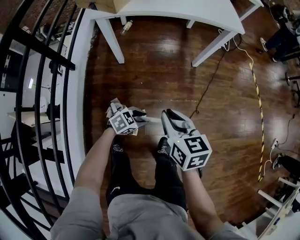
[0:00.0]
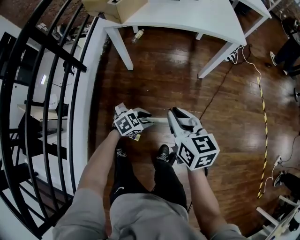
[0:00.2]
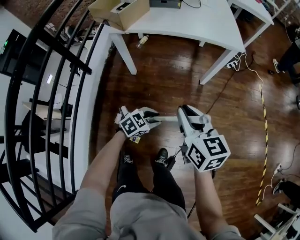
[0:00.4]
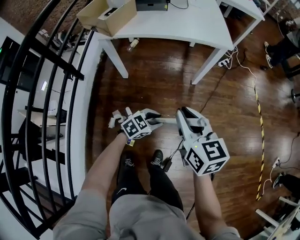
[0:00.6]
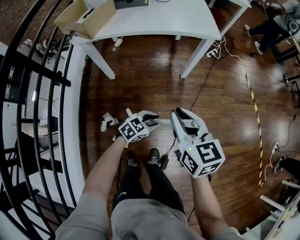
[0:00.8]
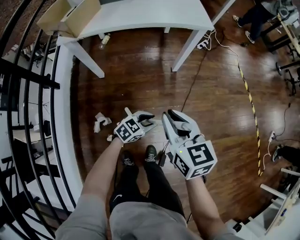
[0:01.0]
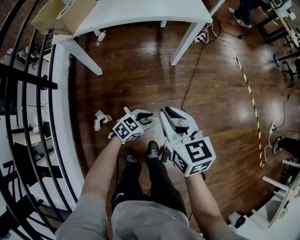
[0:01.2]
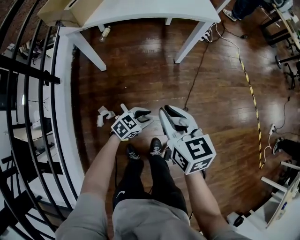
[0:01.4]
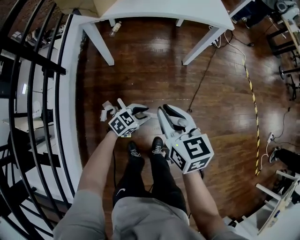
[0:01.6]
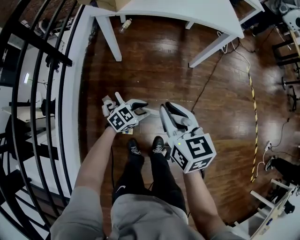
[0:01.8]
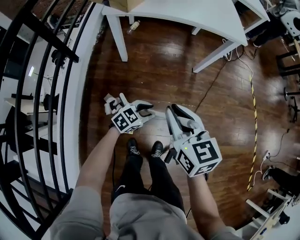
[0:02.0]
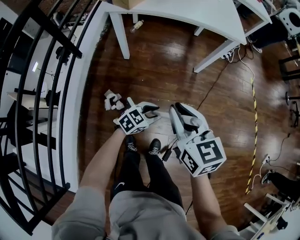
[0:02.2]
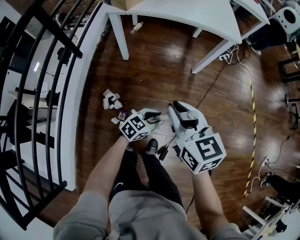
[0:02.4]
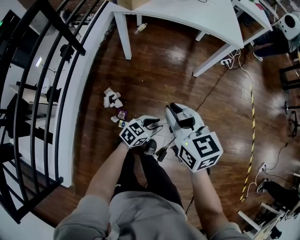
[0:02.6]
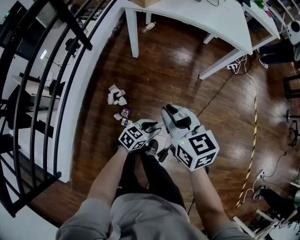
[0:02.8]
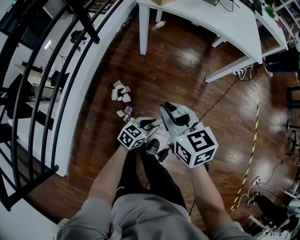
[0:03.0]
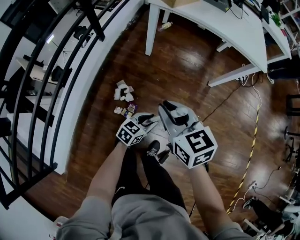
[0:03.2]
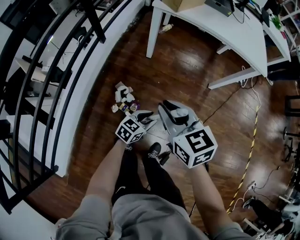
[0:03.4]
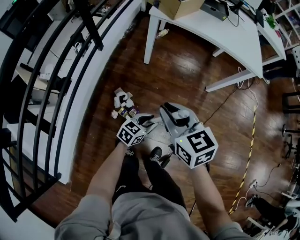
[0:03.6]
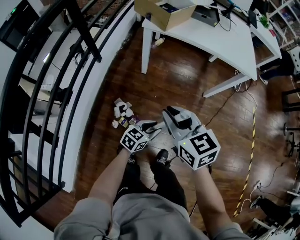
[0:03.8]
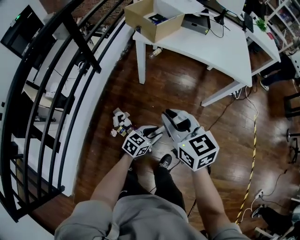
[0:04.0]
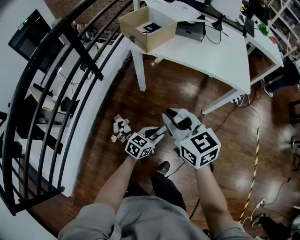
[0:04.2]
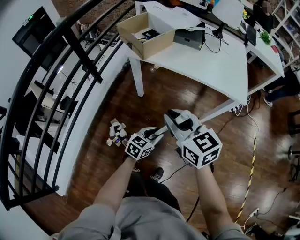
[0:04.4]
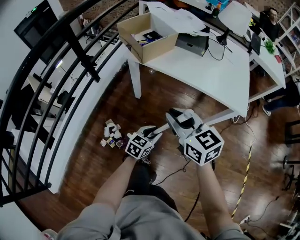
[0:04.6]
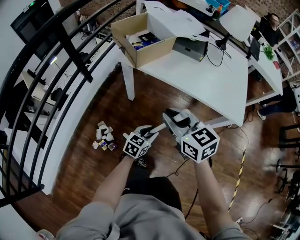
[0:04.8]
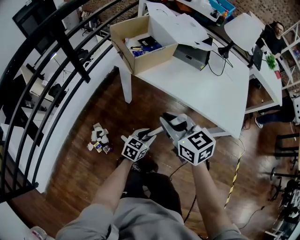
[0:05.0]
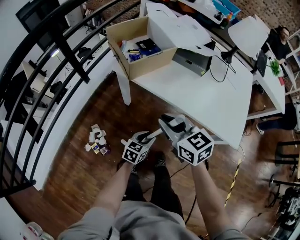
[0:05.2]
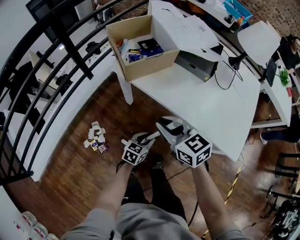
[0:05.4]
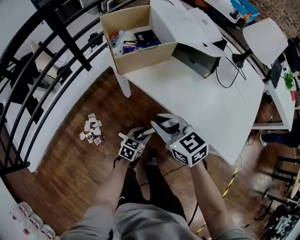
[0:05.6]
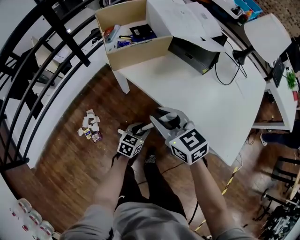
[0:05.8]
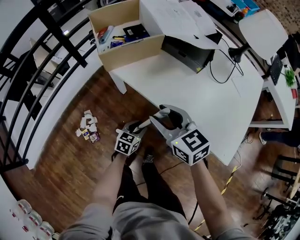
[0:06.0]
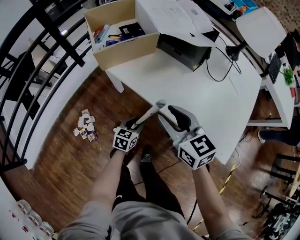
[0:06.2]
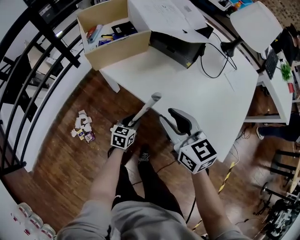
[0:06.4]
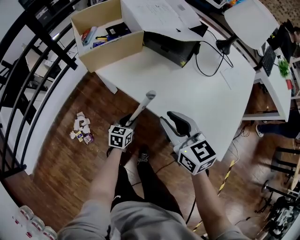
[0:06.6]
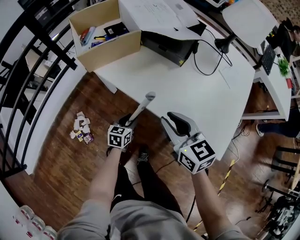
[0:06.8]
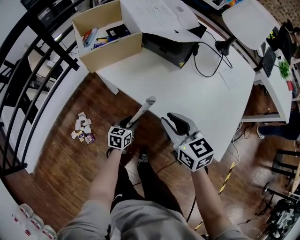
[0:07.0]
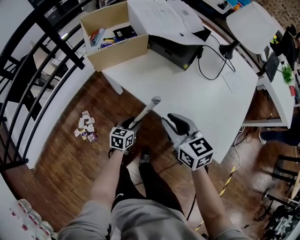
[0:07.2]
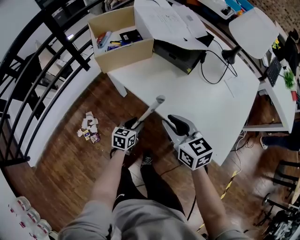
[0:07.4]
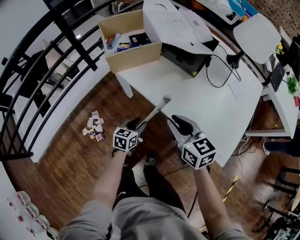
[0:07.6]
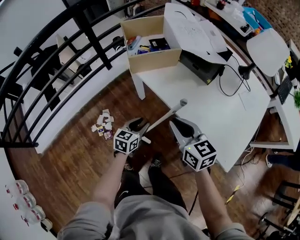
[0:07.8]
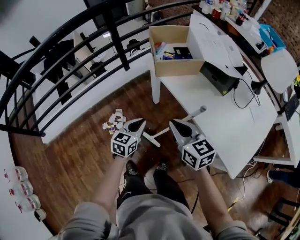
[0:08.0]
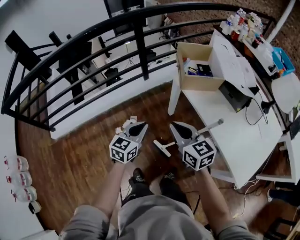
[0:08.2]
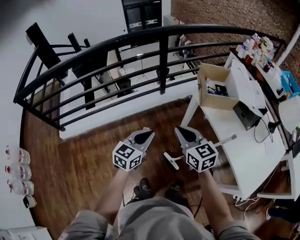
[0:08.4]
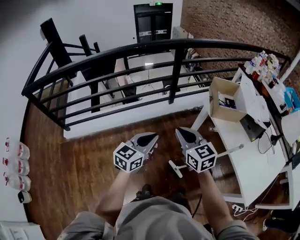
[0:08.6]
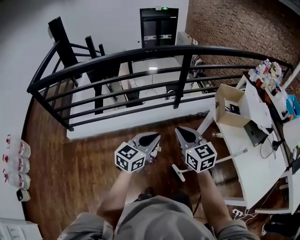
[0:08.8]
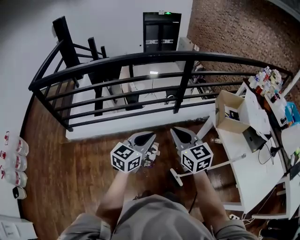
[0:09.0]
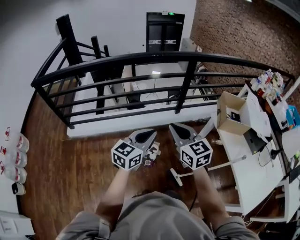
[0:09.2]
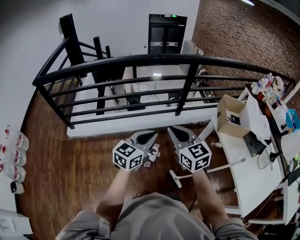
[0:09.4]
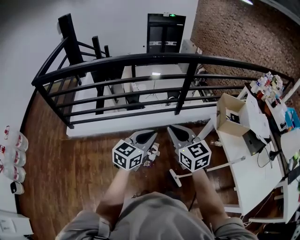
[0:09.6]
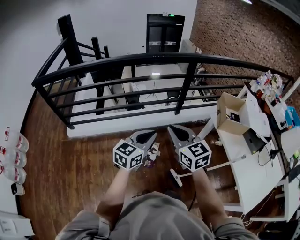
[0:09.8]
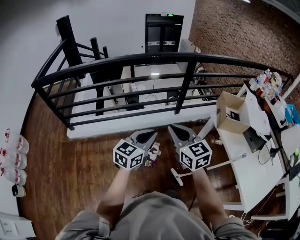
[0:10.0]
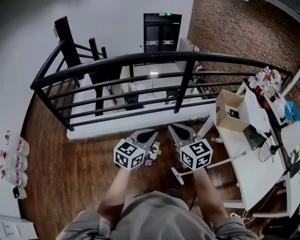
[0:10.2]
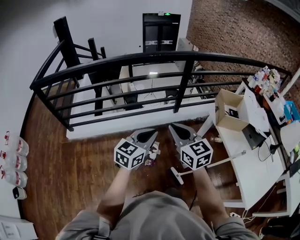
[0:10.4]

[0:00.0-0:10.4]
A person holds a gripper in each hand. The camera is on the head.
0.0 to 1.4 s: The left gripper shifts roughly 10 cm to the right and forward. The right gripper travels to the right and forward by about 10 cm, and reaches roughly 10 cm upward, then returns.
1.4 to 3.0 s: The left gripper moves roughly 15 cm, and rotates about 40 degrees; the right gripper moves roughly 15 cm, and turns by about 30 degrees.
3.0 to 4.4 s: The right gripper travels forward, upward and to the right by roughly 25 cm. Meanwhile the left gripper moves forward and upward, approximately 25 cm.
4.4 to 6.0 s: The left gripper heads forward, downward and to the right, covering approximately 30 cm, and rotates approximately 30 degrees. Meanwhile the right gripper goes approximately 30 cm forward, to the right and downward, swivels approximately 20 degrees, and opens.
6.0 to 7.4 s: The right gripper heads to the right, covering approximately 10 cm.
7.4 to 9.0 s: Both grippers are carried about 50 cm. The left gripper turns by about 40 degrees, and closes, while the right gripper swivels roughly 40 degrees, and closes its fingers.
9.0 to 10.4 s: The grippers stay close to where they were, moving slightly.

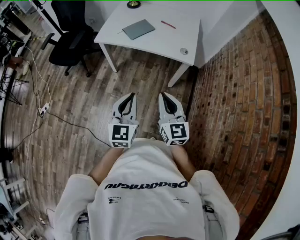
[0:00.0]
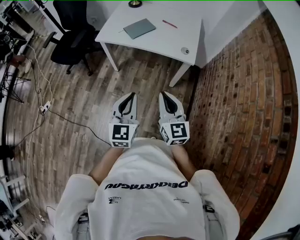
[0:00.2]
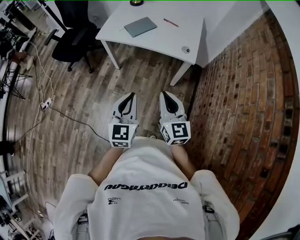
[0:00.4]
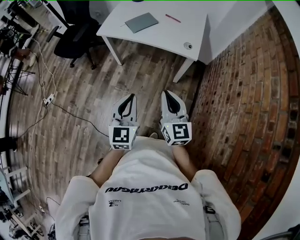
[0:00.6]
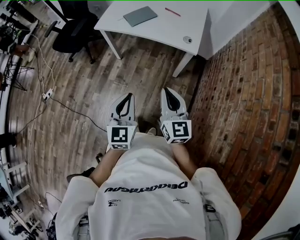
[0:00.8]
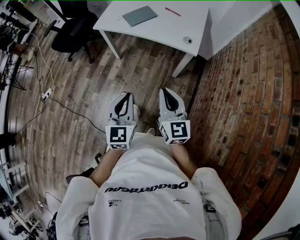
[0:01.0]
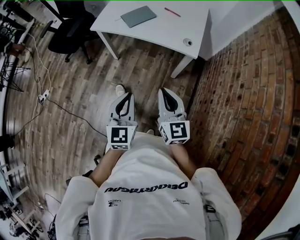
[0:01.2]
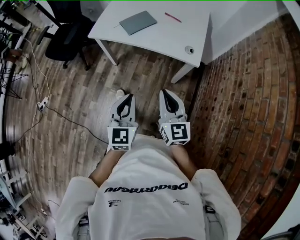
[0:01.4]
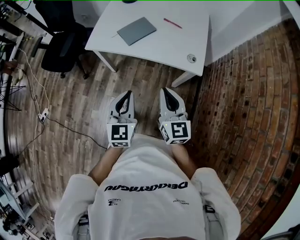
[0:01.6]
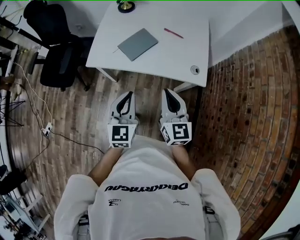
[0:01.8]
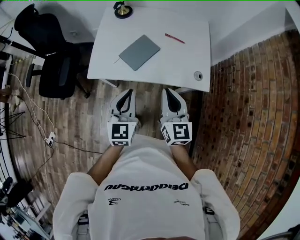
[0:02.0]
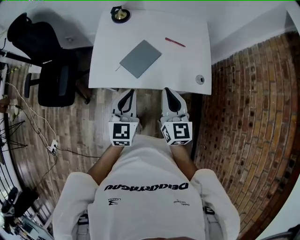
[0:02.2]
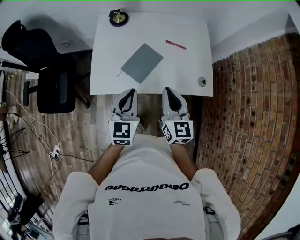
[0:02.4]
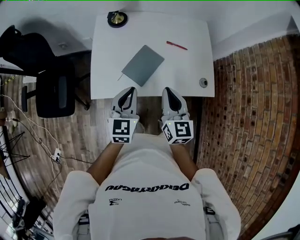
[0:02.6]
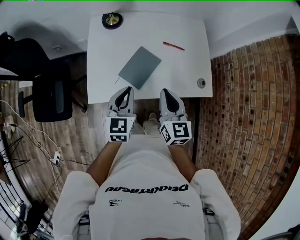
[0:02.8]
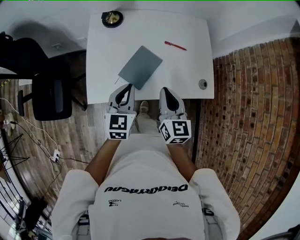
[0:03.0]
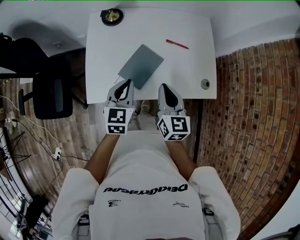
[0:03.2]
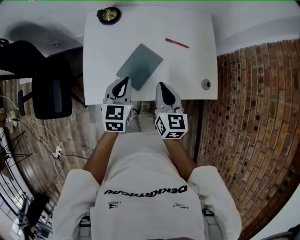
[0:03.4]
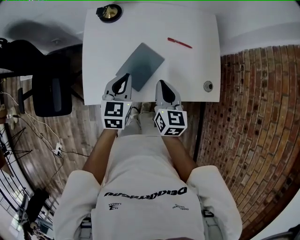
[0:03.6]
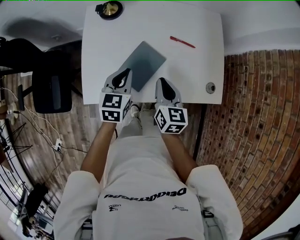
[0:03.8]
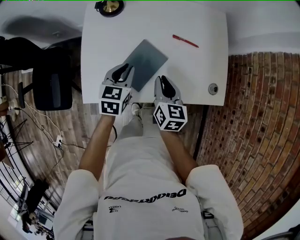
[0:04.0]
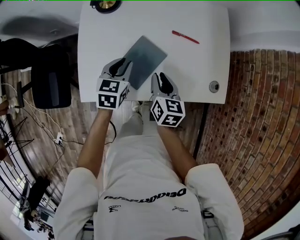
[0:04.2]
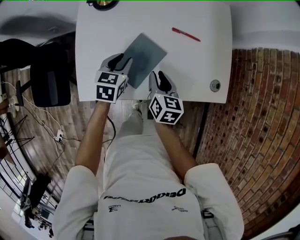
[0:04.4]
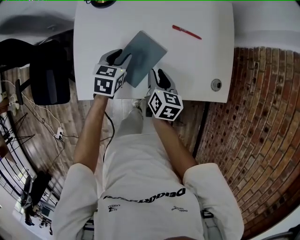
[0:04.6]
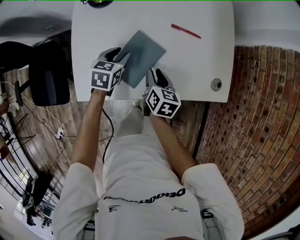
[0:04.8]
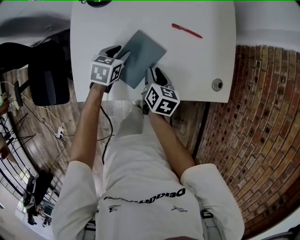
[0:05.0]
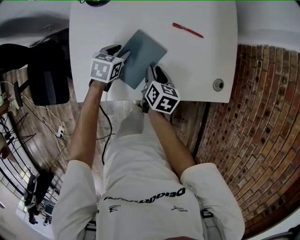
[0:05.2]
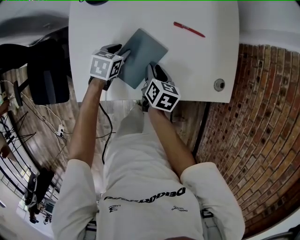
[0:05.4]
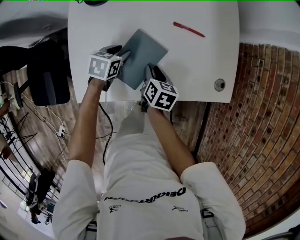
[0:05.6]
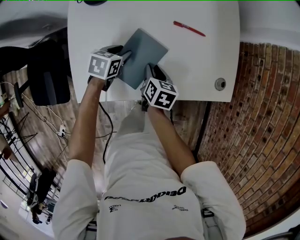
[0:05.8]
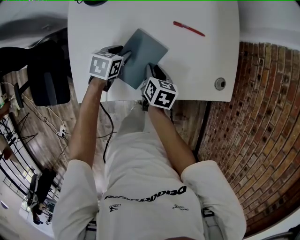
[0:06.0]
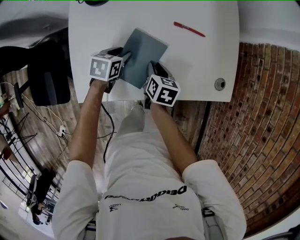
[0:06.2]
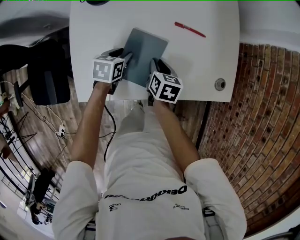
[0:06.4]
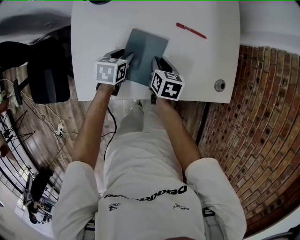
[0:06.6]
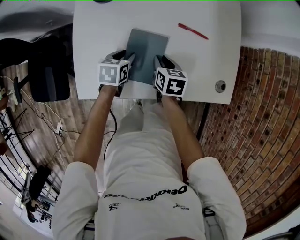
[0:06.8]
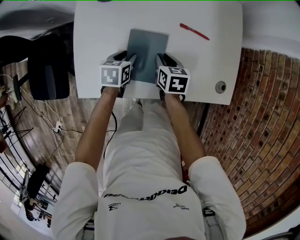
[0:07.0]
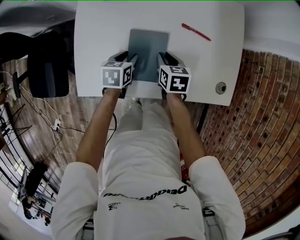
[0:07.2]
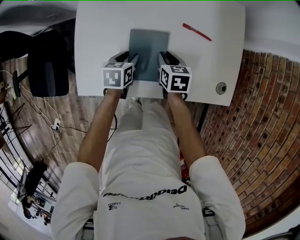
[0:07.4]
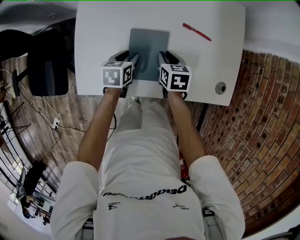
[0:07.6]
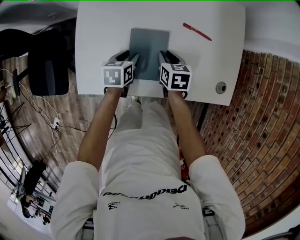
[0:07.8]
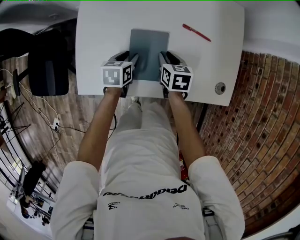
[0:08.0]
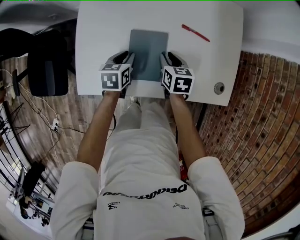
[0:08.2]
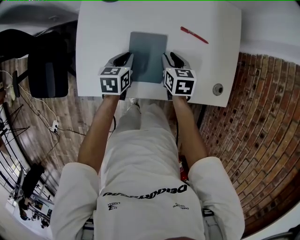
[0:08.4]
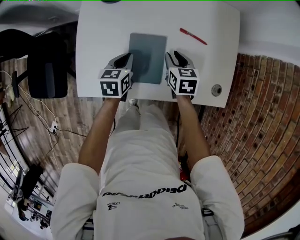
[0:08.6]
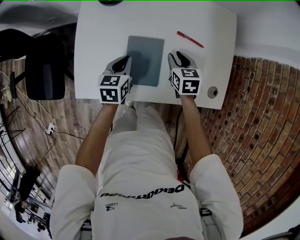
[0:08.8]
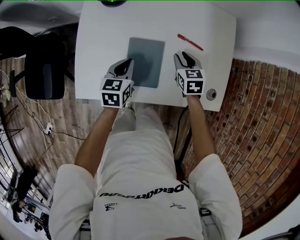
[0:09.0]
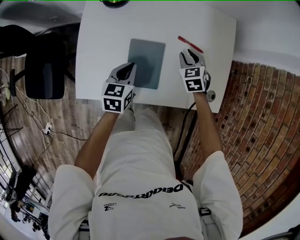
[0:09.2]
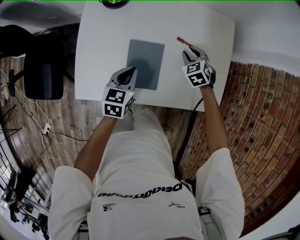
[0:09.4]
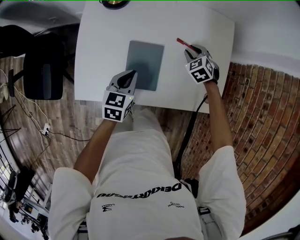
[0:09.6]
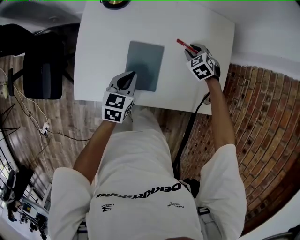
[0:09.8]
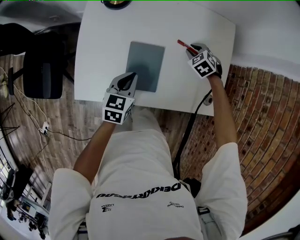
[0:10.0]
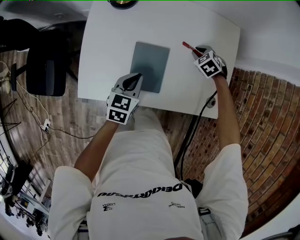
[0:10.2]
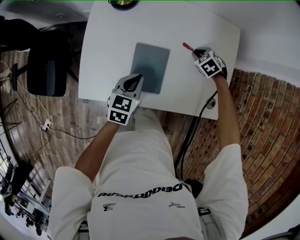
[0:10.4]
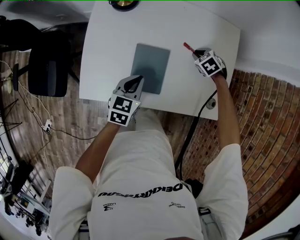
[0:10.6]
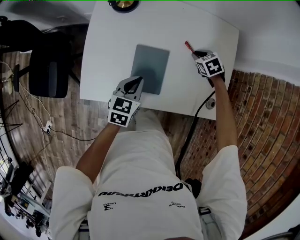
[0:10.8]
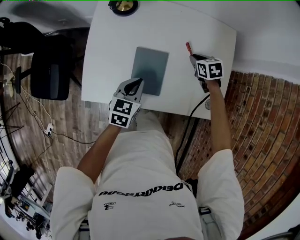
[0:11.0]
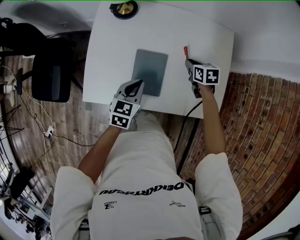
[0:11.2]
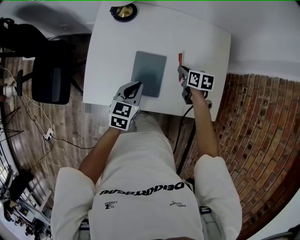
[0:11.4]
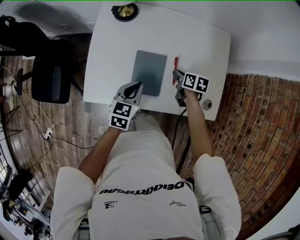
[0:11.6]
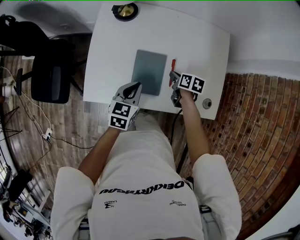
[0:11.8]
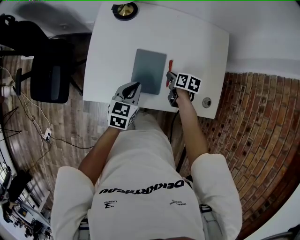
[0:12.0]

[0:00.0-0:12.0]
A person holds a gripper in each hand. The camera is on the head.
0.0 to 1.6 s: Both grippers move forward, about 20 cm.
1.6 to 3.0 s: Both grippers move forward and to the left, about 35 cm. The left gripper swivels about 20 degrees; the right gripper changes its angle by roughly 20 degrees.
3.0 to 4.4 s: Both grippers move downward and forward, about 20 cm. The left gripper changes its angle by about 20 degrees, and opens, while the right gripper swivels about 30 degrees, and opens up.
4.4 to 6.0 s: Both grippers move downward, roughly 10 cm. The left gripper changes its angle by approximately 20 degrees.
6.0 to 7.6 s: The left gripper swivels about 20 degrees, while the right gripper swivels some 20 degrees.
7.6 to 9.0 s: The left gripper travels upward by approximately 10 cm, and closes. Meanwhile the right gripper moves to the right, roughly 5 cm, and rotates roughly 20 degrees.
9.0 to 10.4 s: The right gripper heads forward, covering some 5 cm, and swivels roughly 40 degrees.
10.4 to 12.0 s: The right gripper is displaced backward and to the left by about 15 cm, and rolls clockwise, seen from behind, by approximately 70 degrees, while the left gripper changes place by roughly 5 cm.

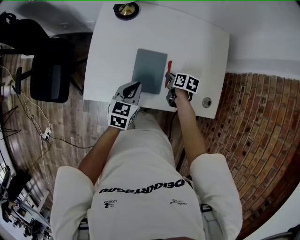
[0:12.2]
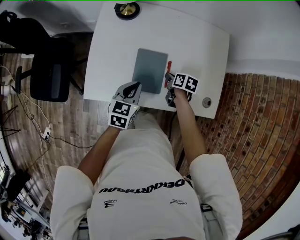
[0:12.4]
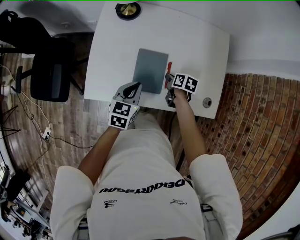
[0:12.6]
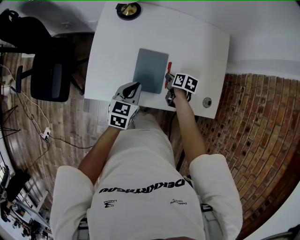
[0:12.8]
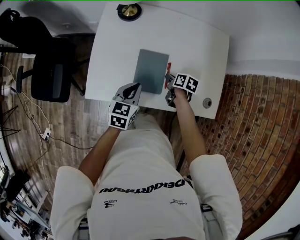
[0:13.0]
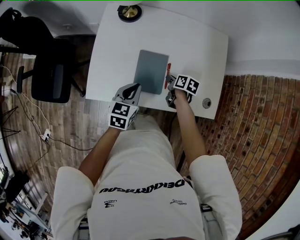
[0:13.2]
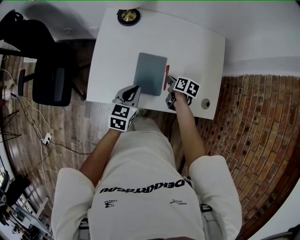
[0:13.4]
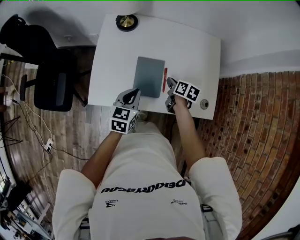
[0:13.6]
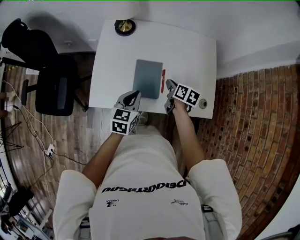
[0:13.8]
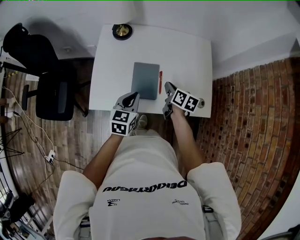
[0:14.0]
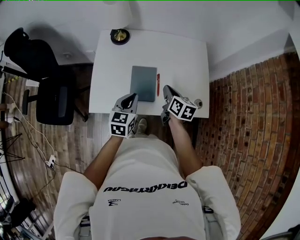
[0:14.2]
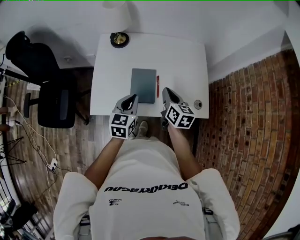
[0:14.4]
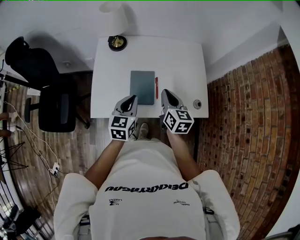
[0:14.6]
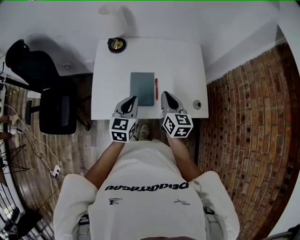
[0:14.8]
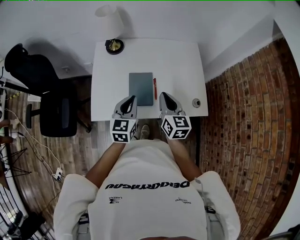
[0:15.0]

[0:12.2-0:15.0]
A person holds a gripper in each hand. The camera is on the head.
12.2 to 13.6 s: The right gripper moves upward, roughly 5 cm.
13.6 to 15.0 s: The right gripper heads upward and backward, covering approximately 25 cm, and tips its fingers upward by approximately 30 degrees. Meanwhile the left gripper heads upward, covering some 10 cm.
